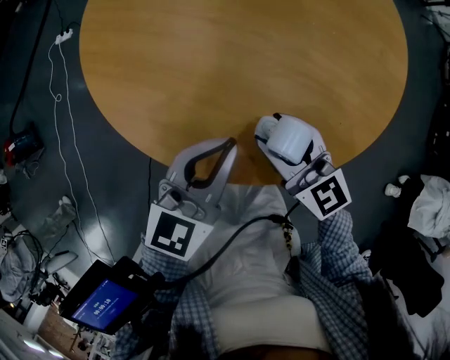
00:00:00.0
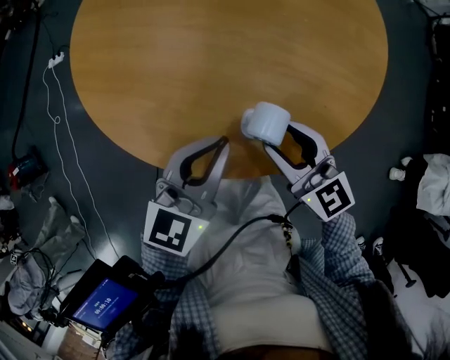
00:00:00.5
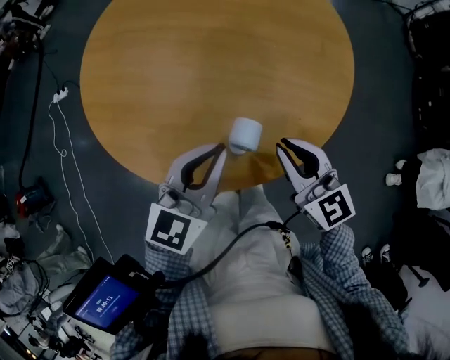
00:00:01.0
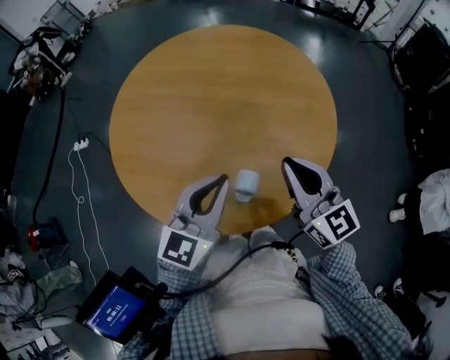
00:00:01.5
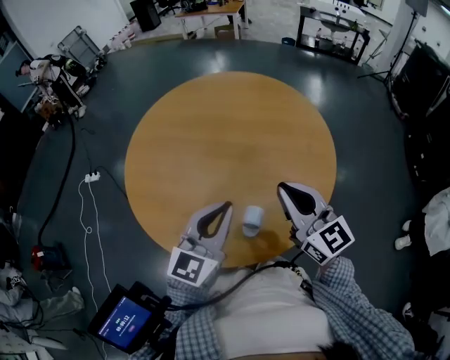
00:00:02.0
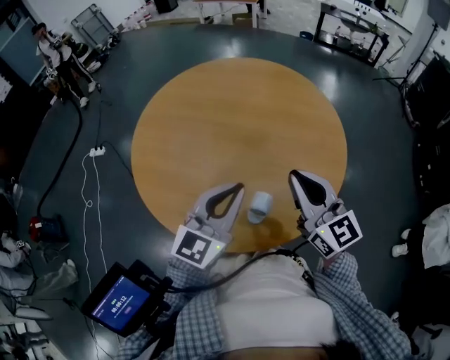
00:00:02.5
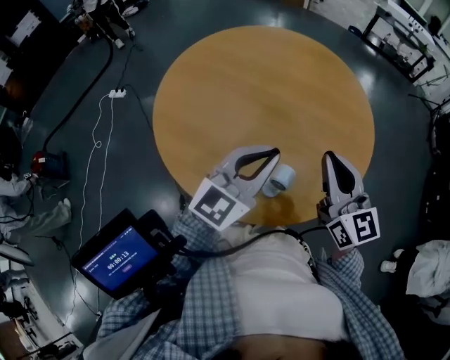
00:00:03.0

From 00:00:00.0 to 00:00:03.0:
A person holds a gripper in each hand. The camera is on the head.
From 00:00:00.0 to 00:00:01.5: The left gripper moves upward and to the right, about 15 cm. The right gripper goes about 20 cm to the right and upward, changes its angle by roughly 30 degrees, and closes its fingers.
From 00:00:01.5 to 00:00:03.0: There are only small adjustments of the grippers.

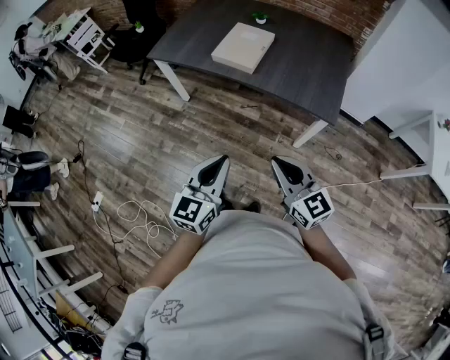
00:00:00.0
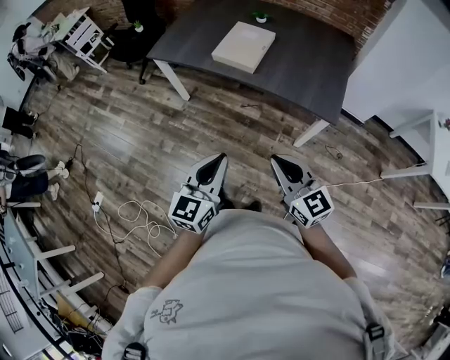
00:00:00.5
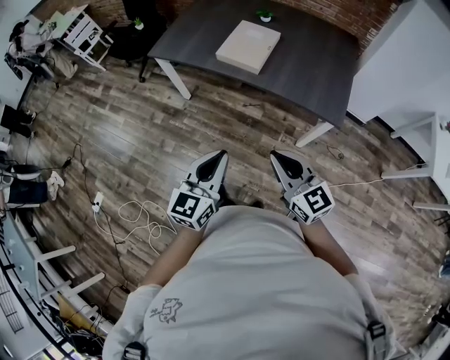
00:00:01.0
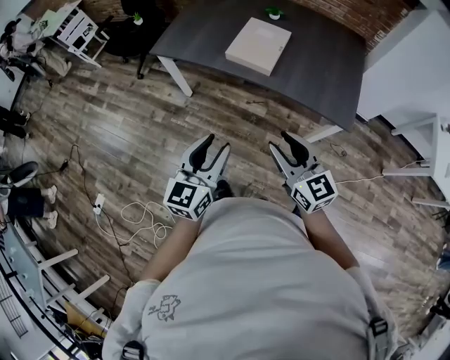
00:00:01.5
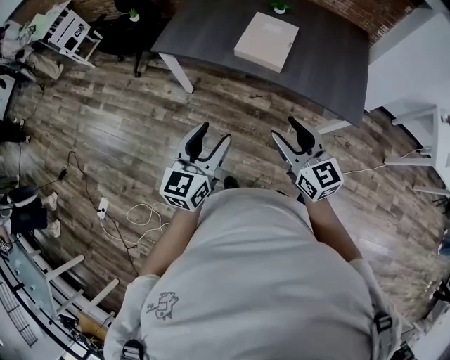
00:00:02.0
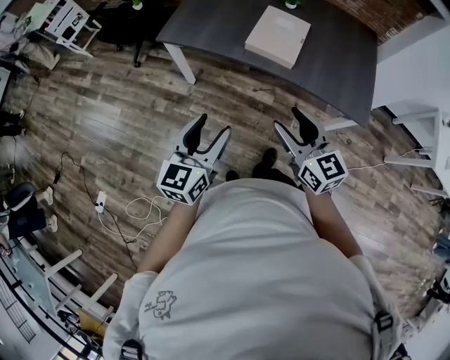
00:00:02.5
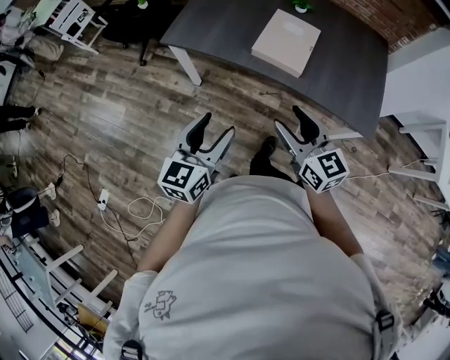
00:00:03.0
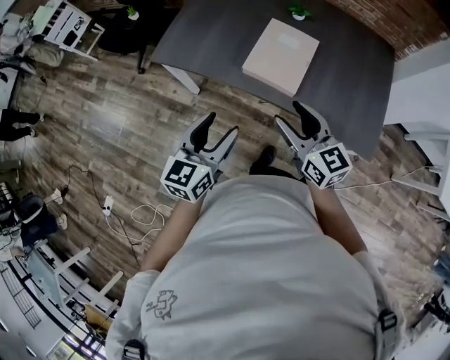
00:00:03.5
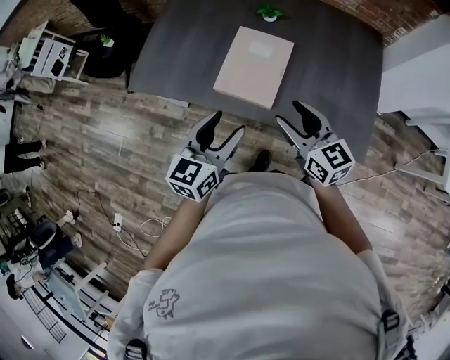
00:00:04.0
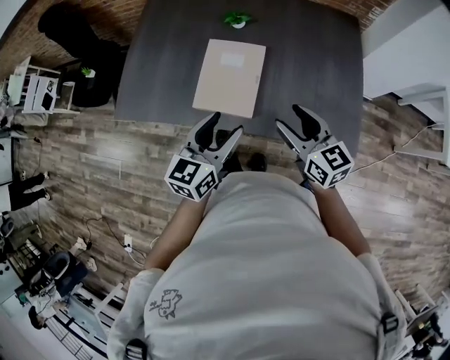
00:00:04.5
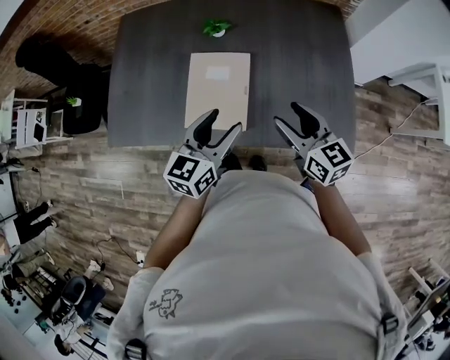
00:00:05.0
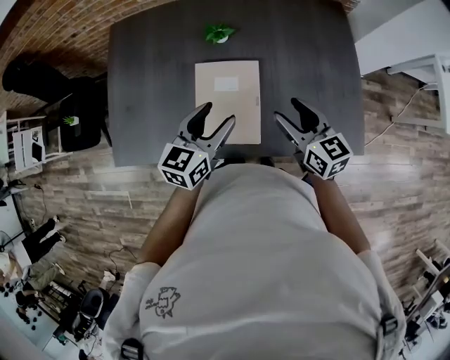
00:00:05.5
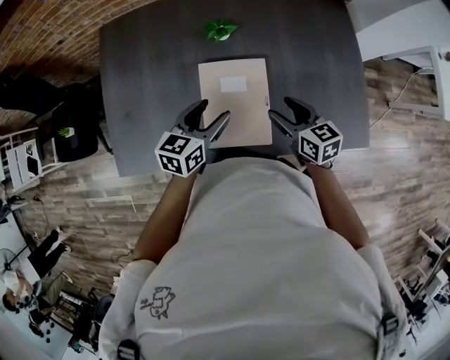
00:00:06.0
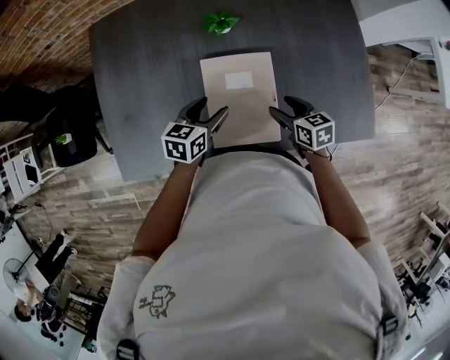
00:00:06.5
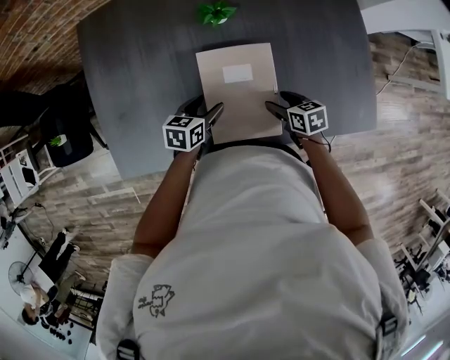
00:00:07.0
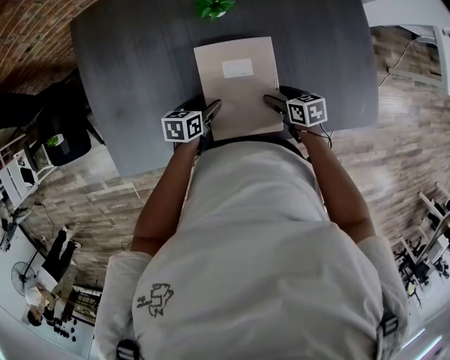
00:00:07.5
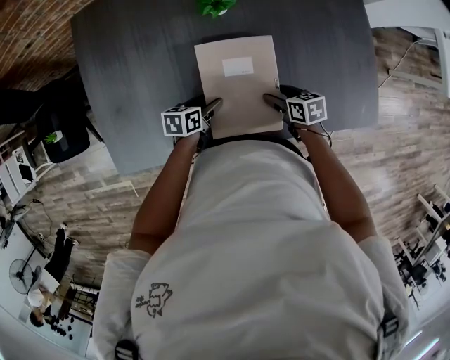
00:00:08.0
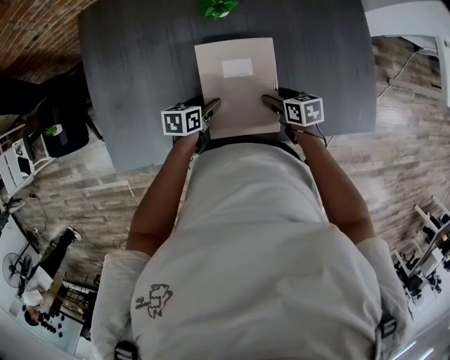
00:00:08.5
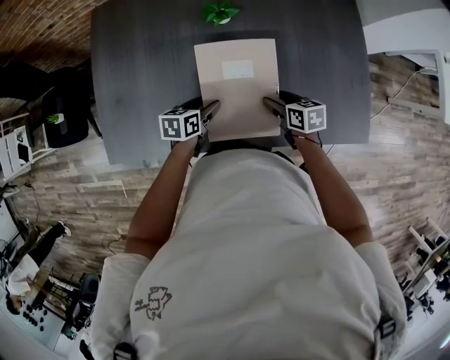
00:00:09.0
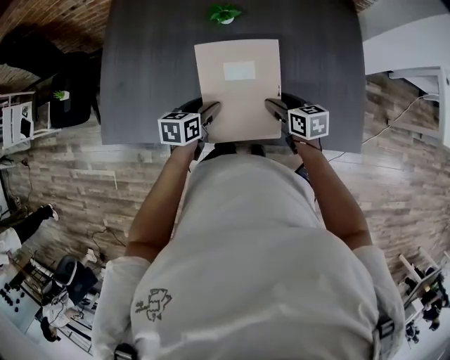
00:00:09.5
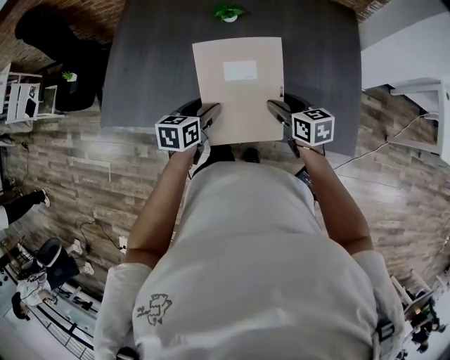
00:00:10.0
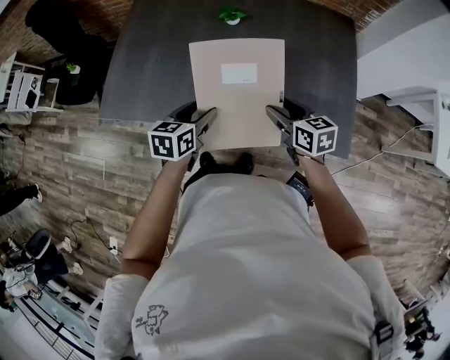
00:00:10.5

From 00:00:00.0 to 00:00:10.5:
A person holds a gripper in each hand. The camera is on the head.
From 00:00:00.0 to 00:00:02.0: The right gripper is displaced forward and to the left by some 25 cm, and opens its fingers; the left gripper travels to the left and forward by approximately 25 cm, and opens.
From 00:00:02.0 to 00:00:04.0: The left gripper is displaced forward and to the right by about 30 cm. Meanwhile the right gripper is displaced forward by approximately 30 cm.
From 00:00:04.0 to 00:00:06.5: The left gripper shifts by approximately 35 cm, and turns by some 40 degrees; the right gripper moves downward, about 20 cm, and tips its fingers downward by about 30 degrees.
From 00:00:06.5 to 00:00:08.5: The right gripper goes approximately 10 cm downward. Meanwhile the left gripper travels downward by some 15 cm, and swivels about 20 degrees.
From 00:00:08.5 to 00:00:10.5: The right gripper travels upward, backward and to the right by about 20 cm, and rotates approximately 30 degrees. Meanwhile the left gripper goes about 25 cm upward and backward, and turns by some 30 degrees.

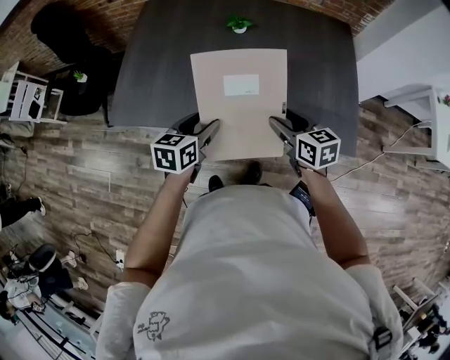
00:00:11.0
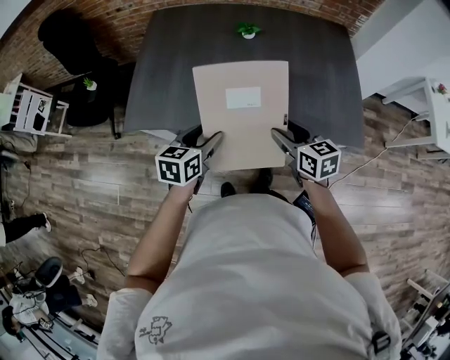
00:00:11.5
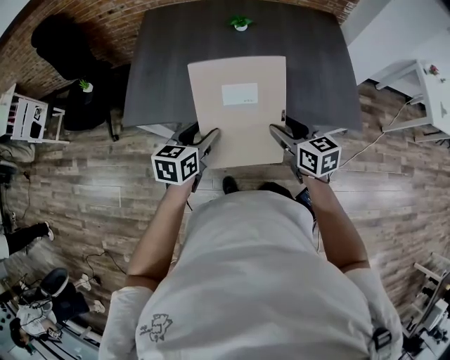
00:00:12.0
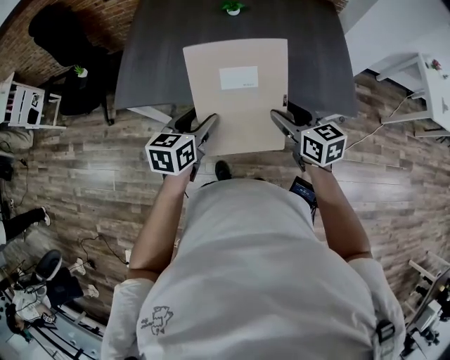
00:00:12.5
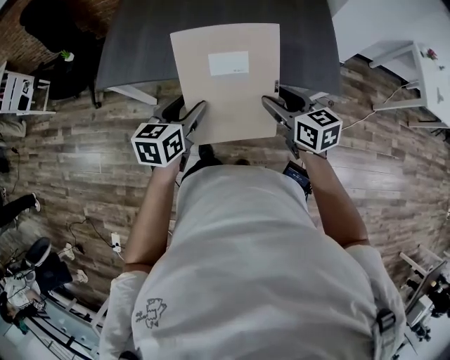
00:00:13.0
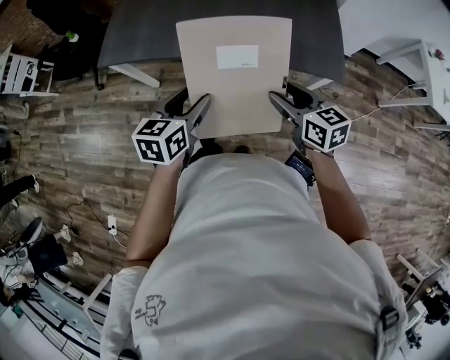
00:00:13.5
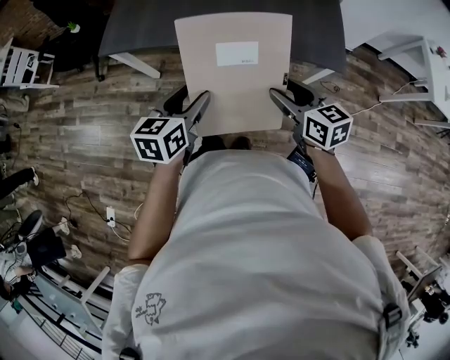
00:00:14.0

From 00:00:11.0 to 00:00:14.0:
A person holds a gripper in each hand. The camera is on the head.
From 00:00:11.0 to 00:00:12.5: Both grippers travel together backward, about 15 cm.
From 00:00:12.5 to 00:00:14.0: Both grippers travel together backward and to the right, approximately 15 cm.

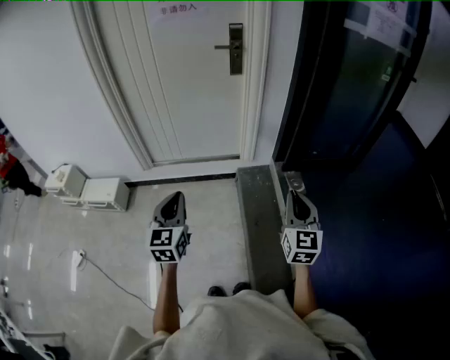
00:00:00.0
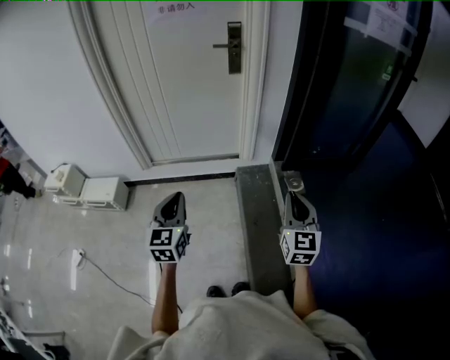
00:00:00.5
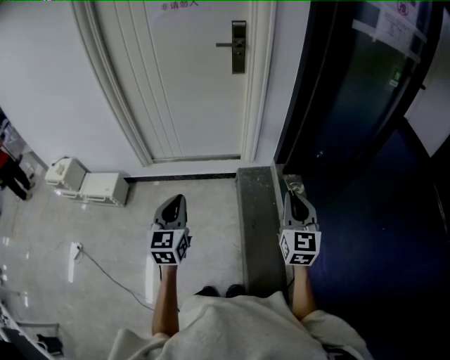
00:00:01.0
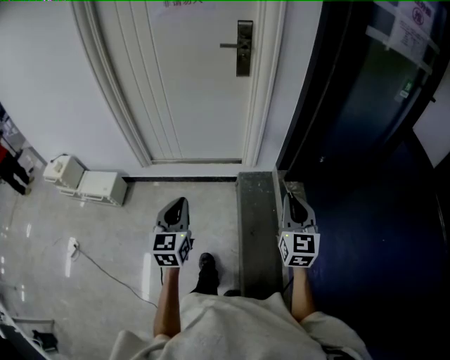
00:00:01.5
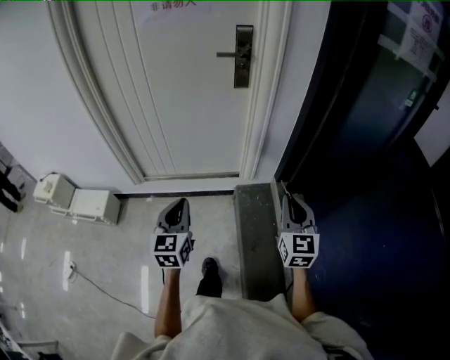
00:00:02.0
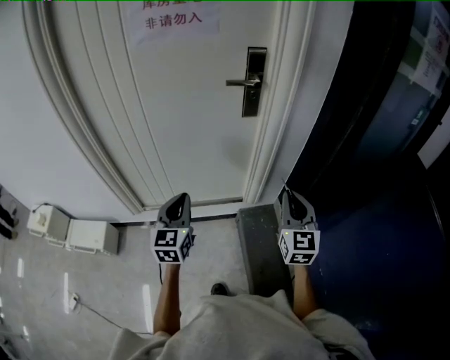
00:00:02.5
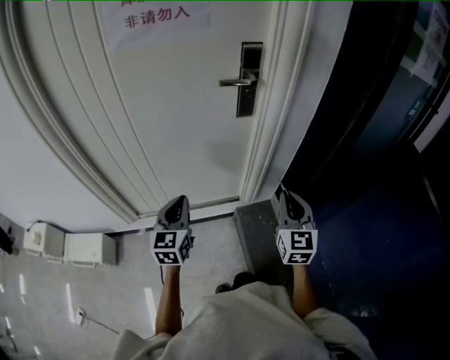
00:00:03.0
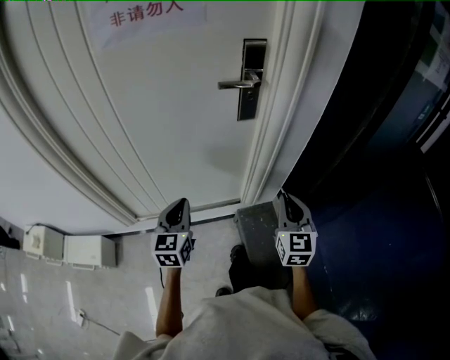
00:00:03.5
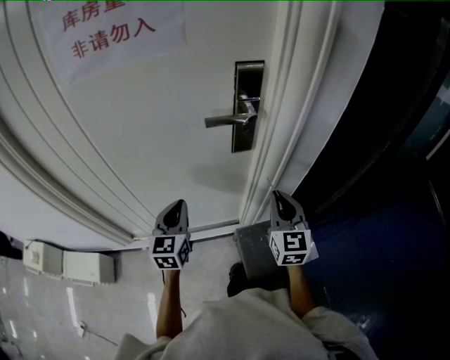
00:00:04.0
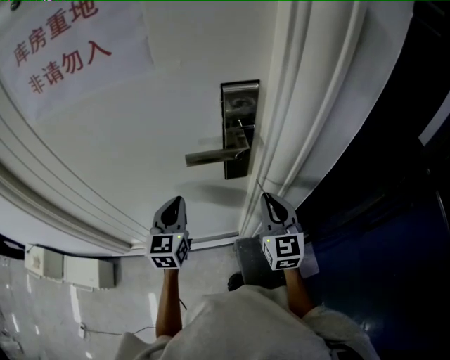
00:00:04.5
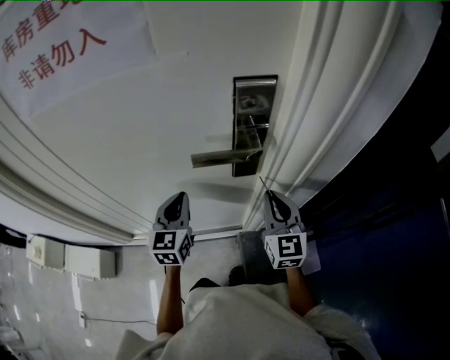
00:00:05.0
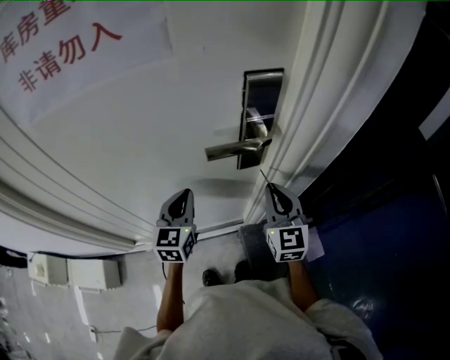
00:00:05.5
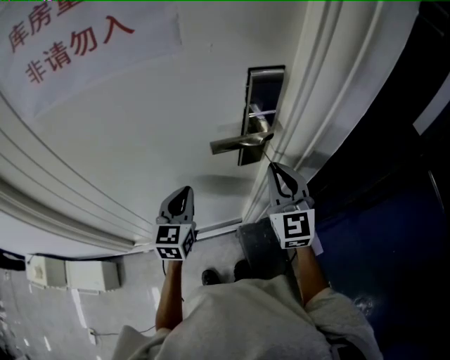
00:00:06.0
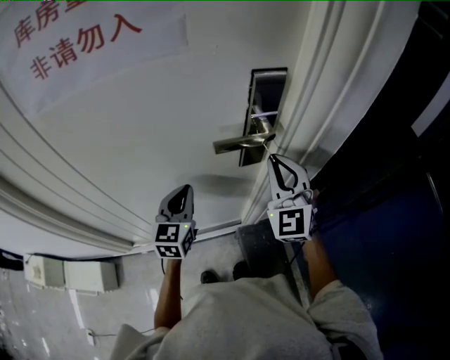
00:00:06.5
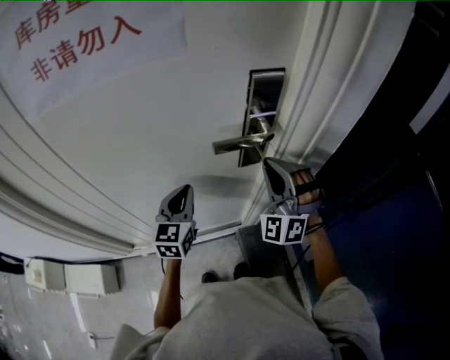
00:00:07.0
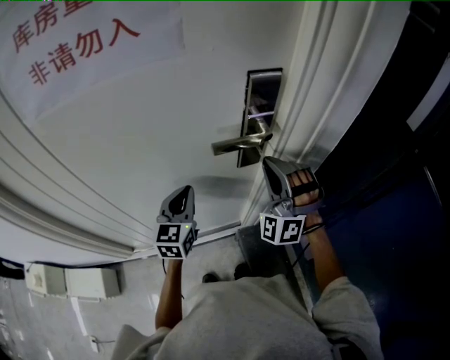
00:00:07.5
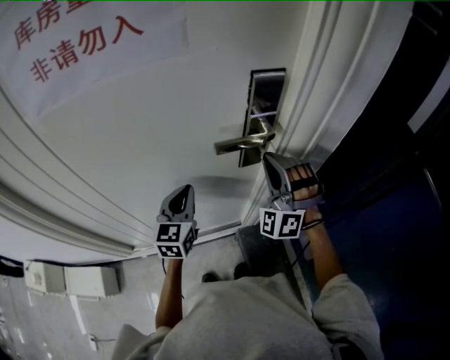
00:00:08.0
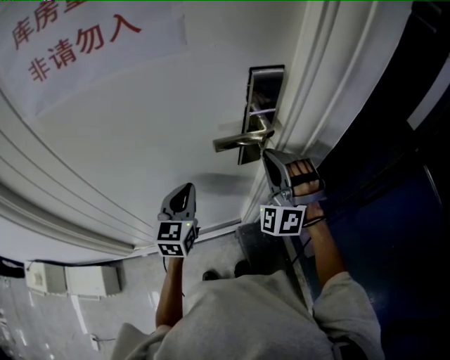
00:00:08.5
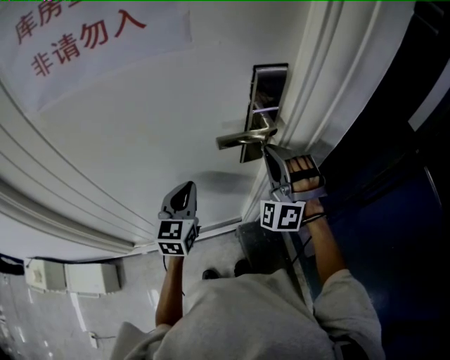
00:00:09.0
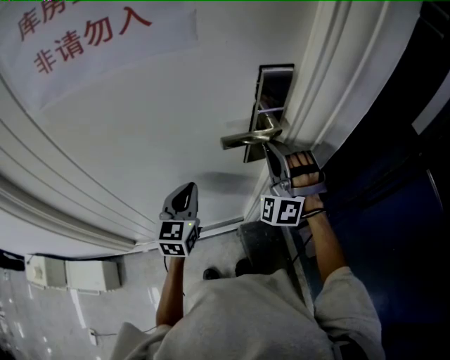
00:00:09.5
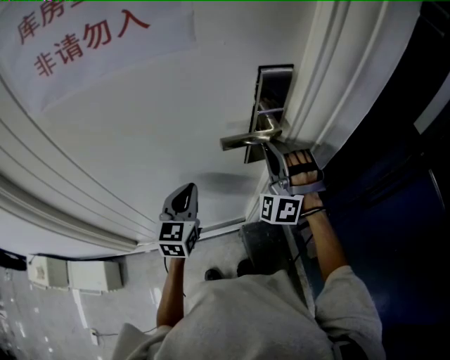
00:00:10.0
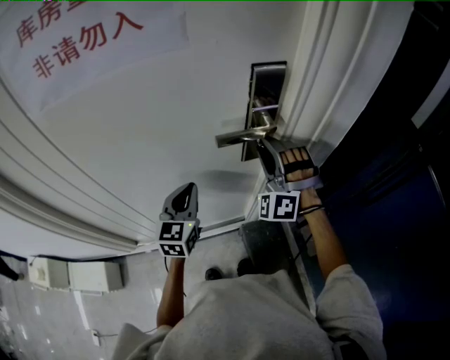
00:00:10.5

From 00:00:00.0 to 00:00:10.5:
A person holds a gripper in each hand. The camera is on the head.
From 00:00:00.0 to 00:00:02.0: The two grippers go roughly 20 cm forward.
From 00:00:02.0 to 00:00:04.0: Both grippers are carried forward, roughly 40 cm.
From 00:00:04.0 to 00:00:06.5: The right gripper is displaced forward, upward and to the left by about 15 cm, and swivels approximately 30 degrees. The left gripper shifts roughly 10 cm forward.
From 00:00:06.5 to 00:00:08.5: The right gripper twists approximately 40 degrees counterclockwise, seen from behind.
From 00:00:08.5 to 00:00:10.5: The right gripper opens up.
